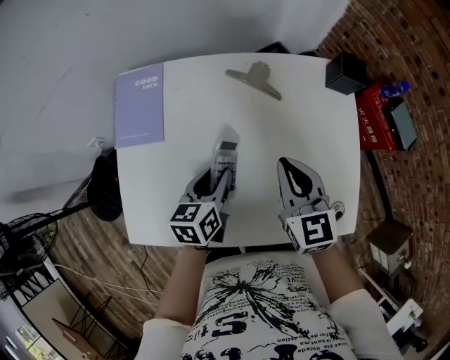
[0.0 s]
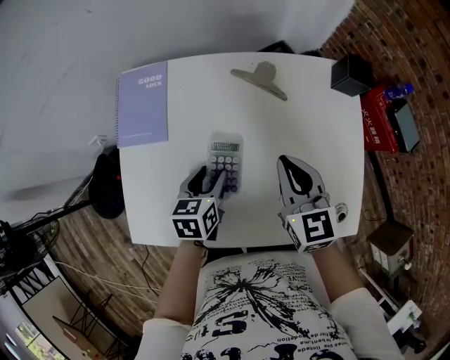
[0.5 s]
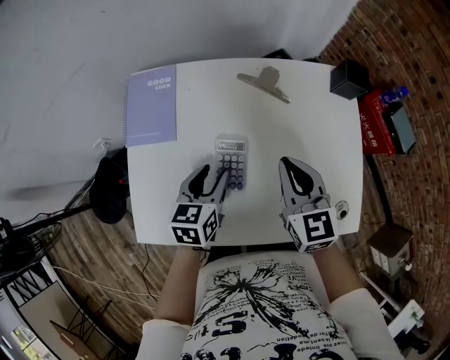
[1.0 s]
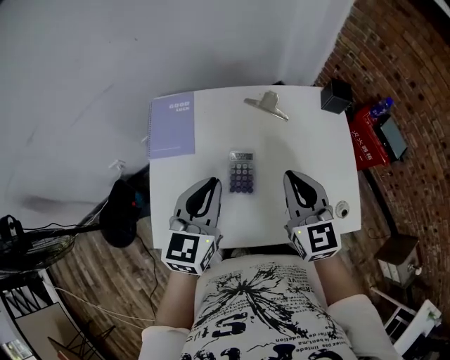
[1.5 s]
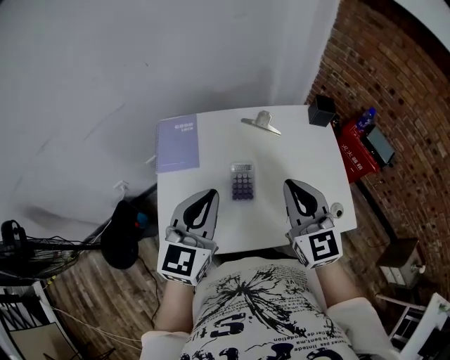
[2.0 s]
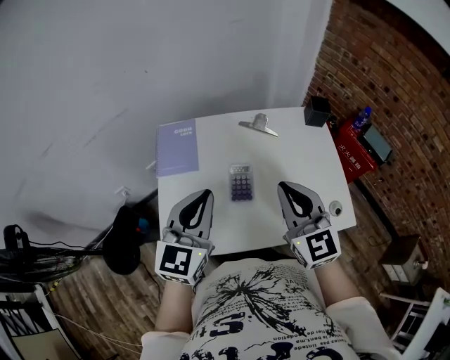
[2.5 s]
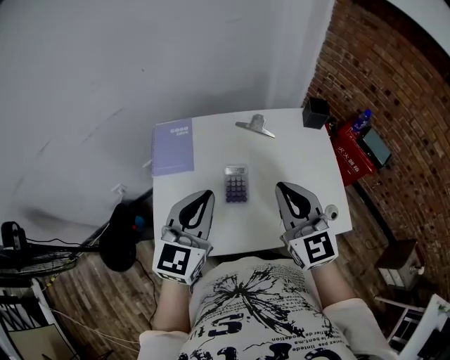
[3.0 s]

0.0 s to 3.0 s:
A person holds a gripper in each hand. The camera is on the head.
0.0 to 1.5 s: The right gripper heads upward, backward and to the left, covering approximately 15 cm; the left gripper goes approximately 20 cm upward, changes its angle by some 30 degrees, and closes its fingers.
1.5 to 3.0 s: Both grippers travel together upward and backward, roughly 10 cm.

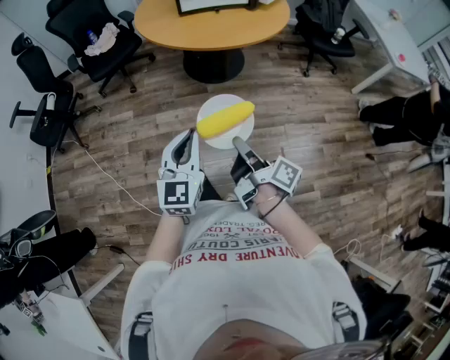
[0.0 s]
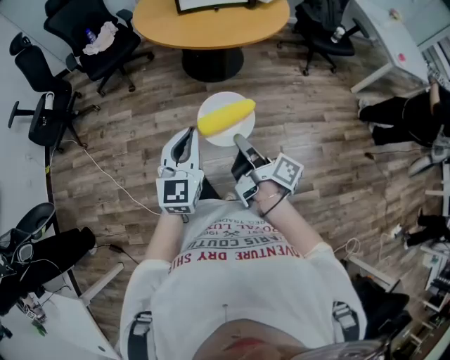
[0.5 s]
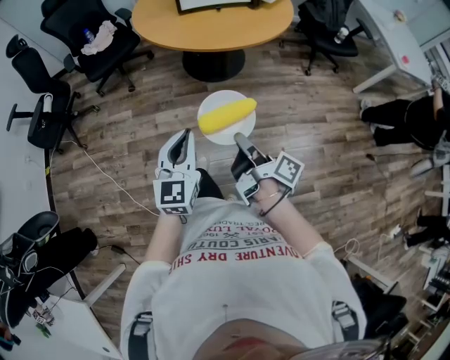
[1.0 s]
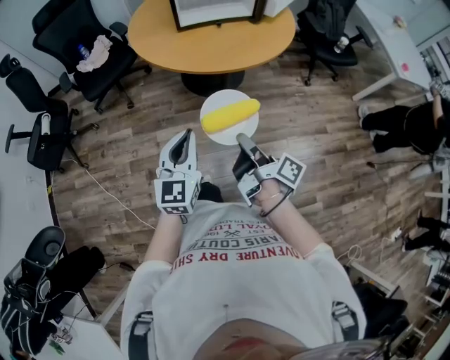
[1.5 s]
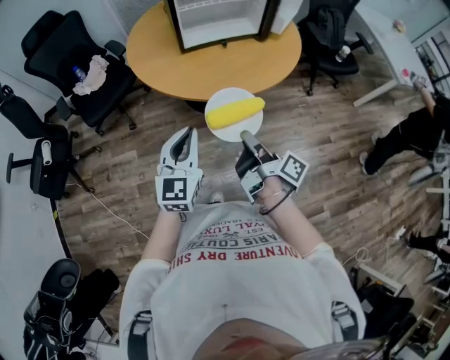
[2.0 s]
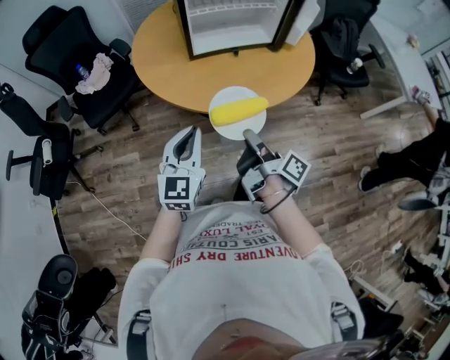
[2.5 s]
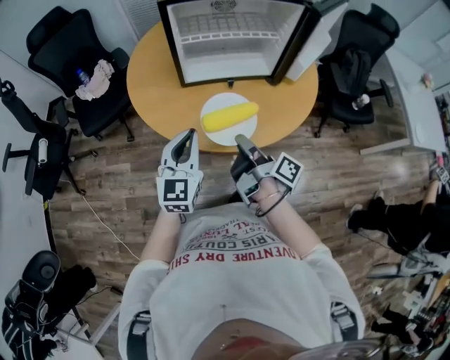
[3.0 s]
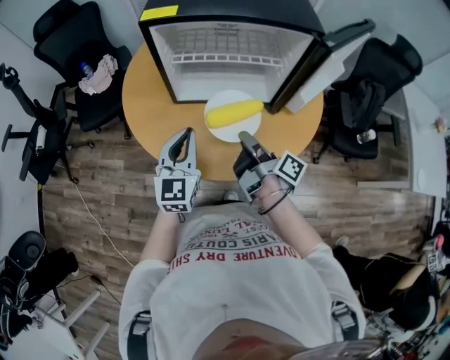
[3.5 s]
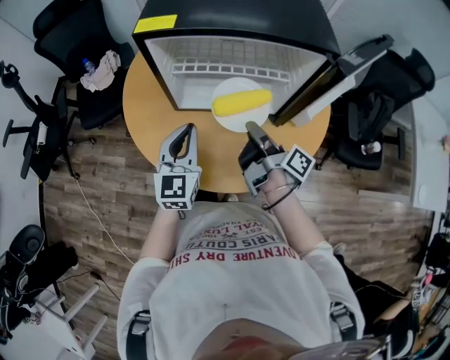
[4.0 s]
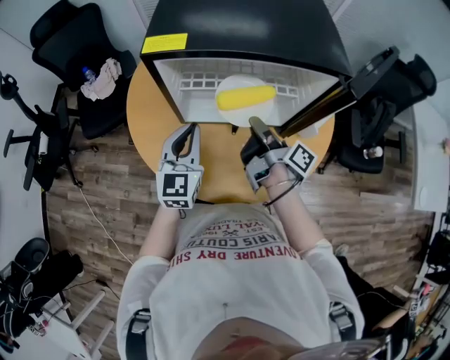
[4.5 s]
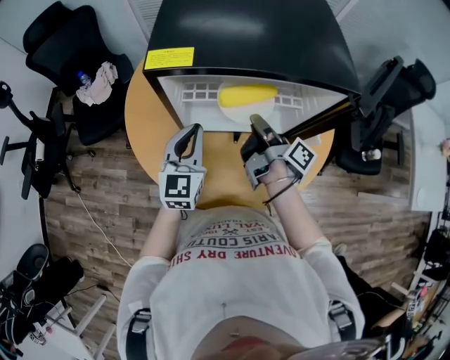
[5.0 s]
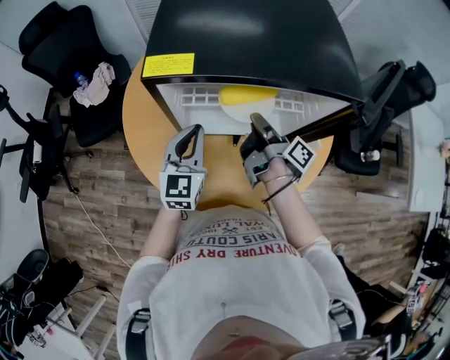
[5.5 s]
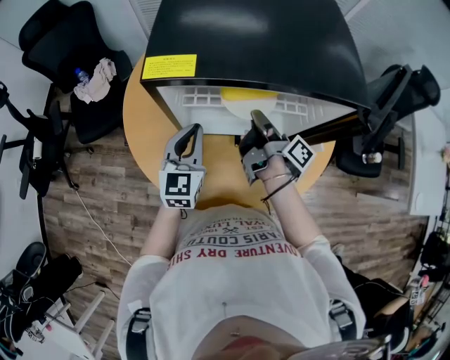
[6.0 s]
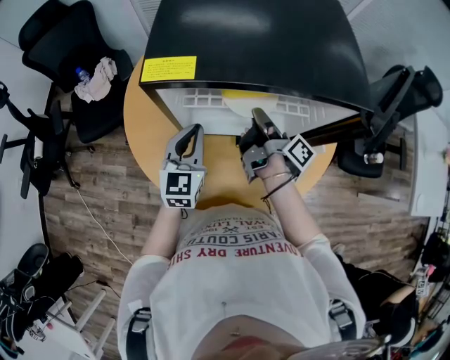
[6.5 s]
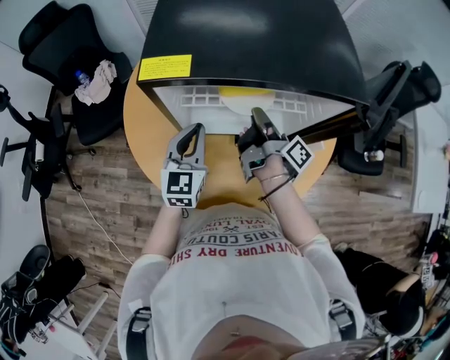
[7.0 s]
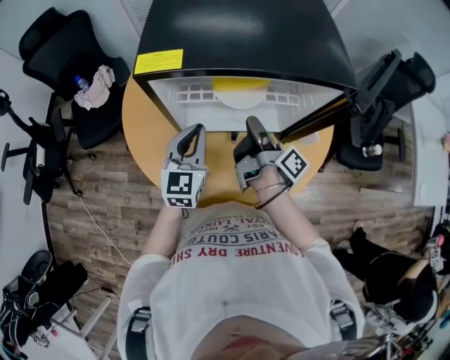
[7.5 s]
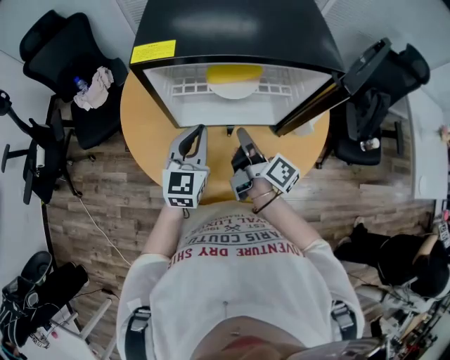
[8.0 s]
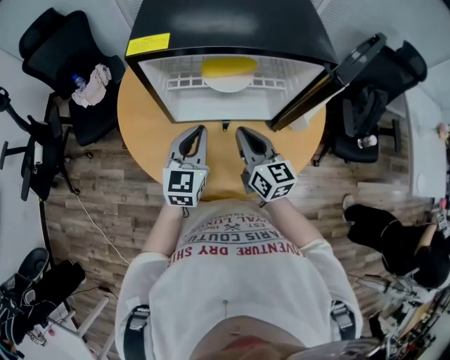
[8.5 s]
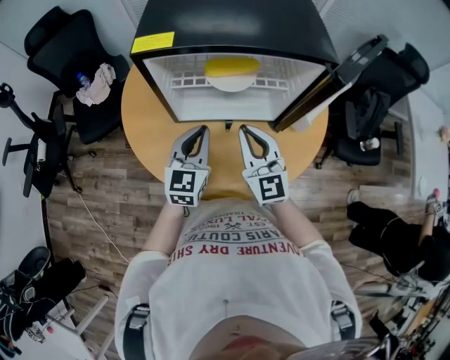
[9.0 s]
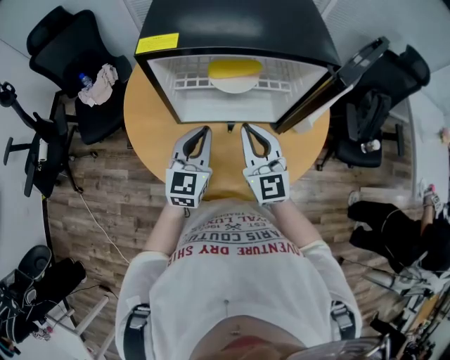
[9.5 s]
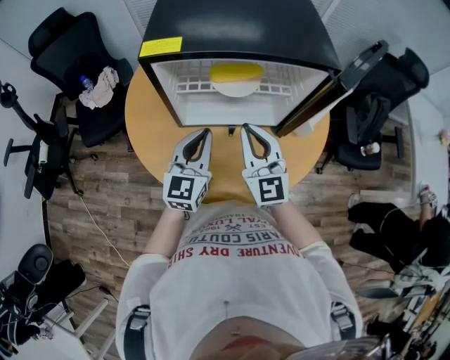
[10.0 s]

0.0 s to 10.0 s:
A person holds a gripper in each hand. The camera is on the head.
0.0 to 2.0 s: The left gripper changes place by about 30 cm.
2.0 to 4.0 s: The left gripper moves some 40 cm, and changes its angle by about 20 degrees.
4.0 to 6.0 s: The left gripper ends up about 10 cm from where it was.
6.0 to 8.0 s: The left gripper moves approximately 5 cm.

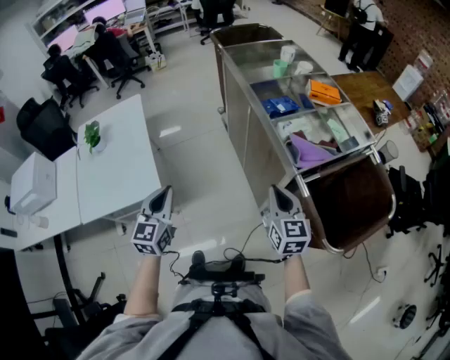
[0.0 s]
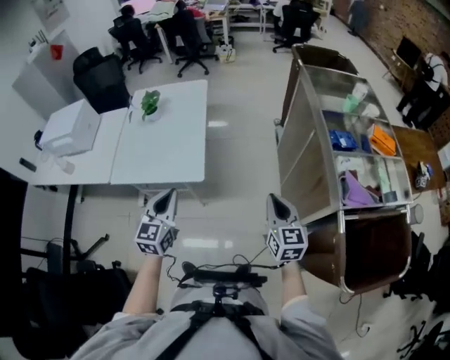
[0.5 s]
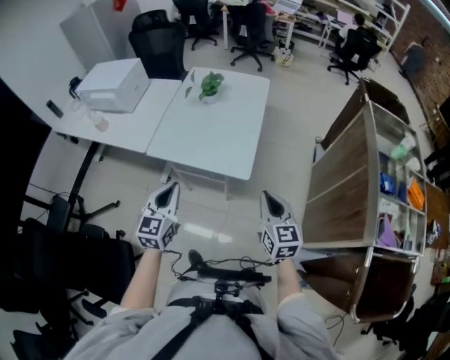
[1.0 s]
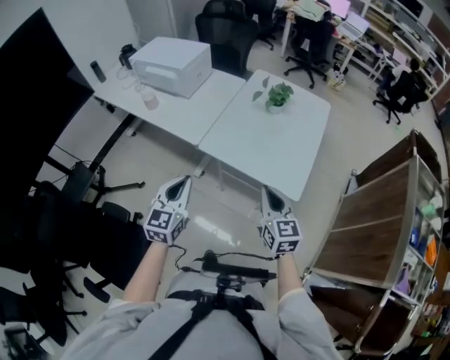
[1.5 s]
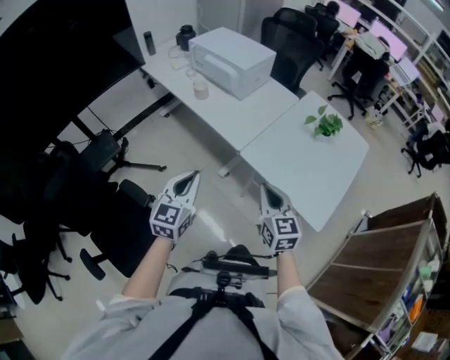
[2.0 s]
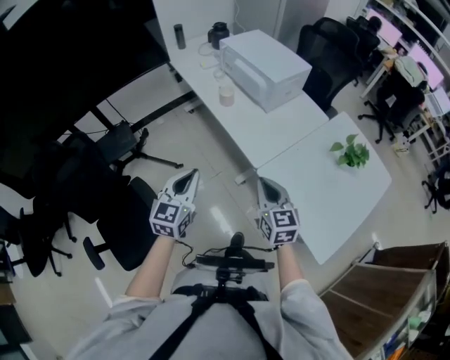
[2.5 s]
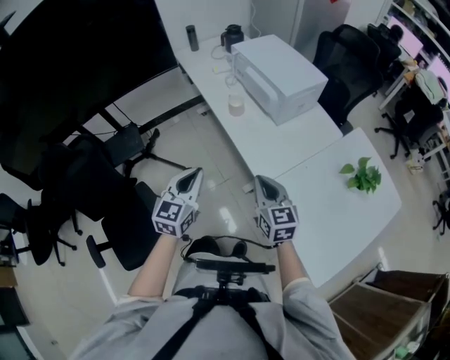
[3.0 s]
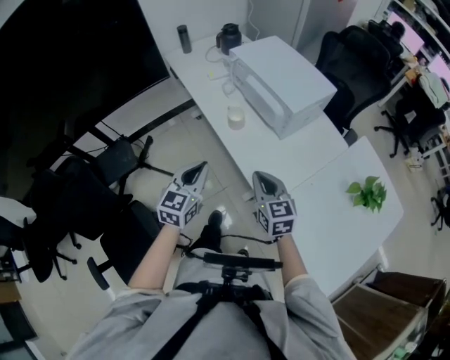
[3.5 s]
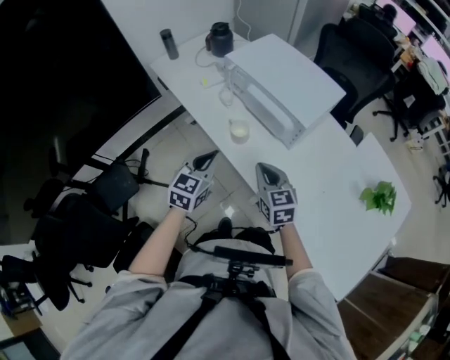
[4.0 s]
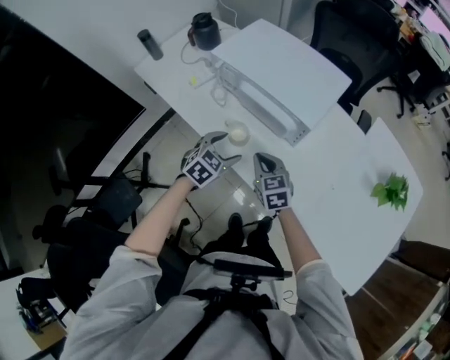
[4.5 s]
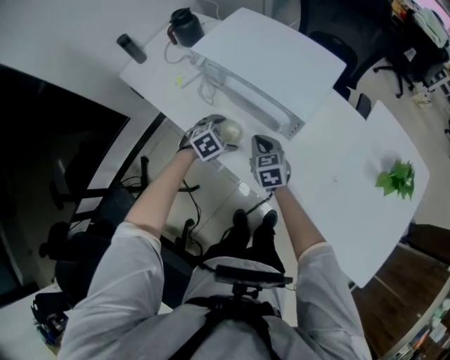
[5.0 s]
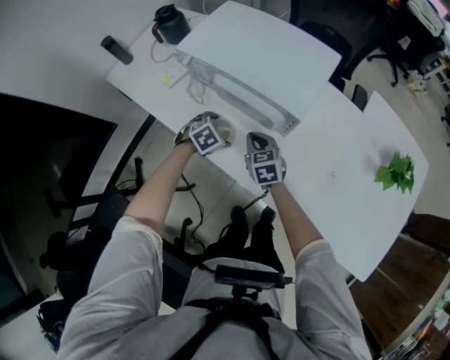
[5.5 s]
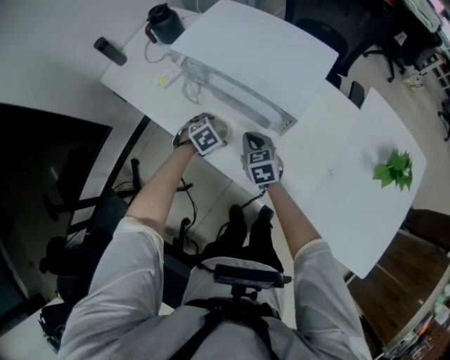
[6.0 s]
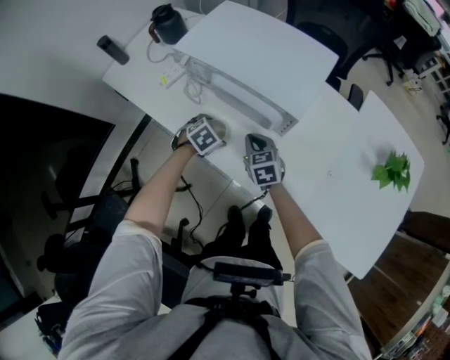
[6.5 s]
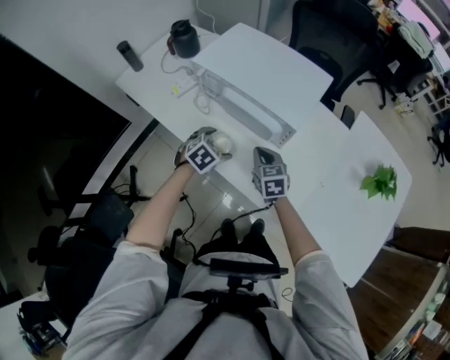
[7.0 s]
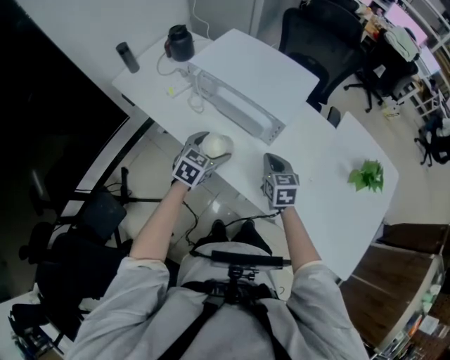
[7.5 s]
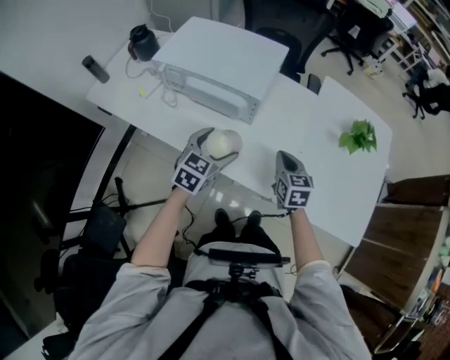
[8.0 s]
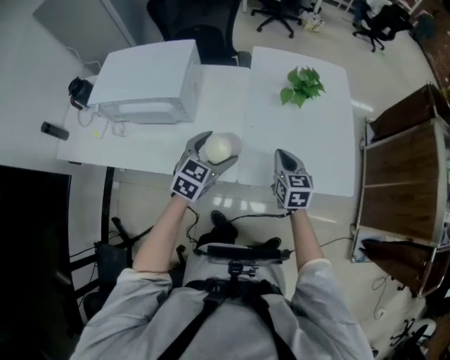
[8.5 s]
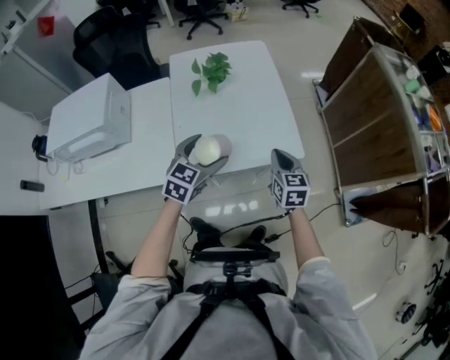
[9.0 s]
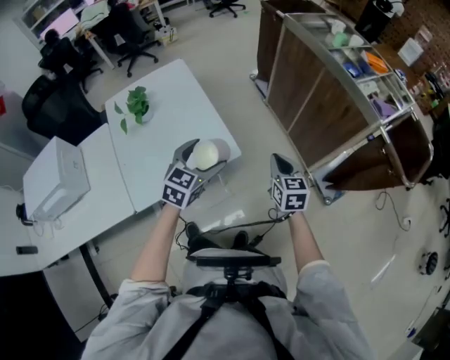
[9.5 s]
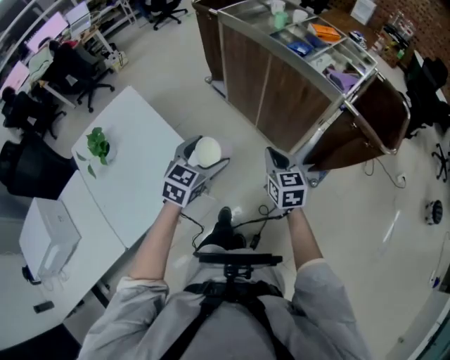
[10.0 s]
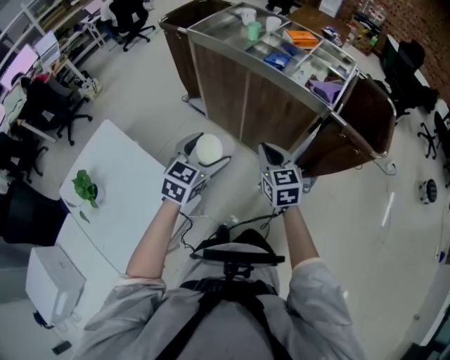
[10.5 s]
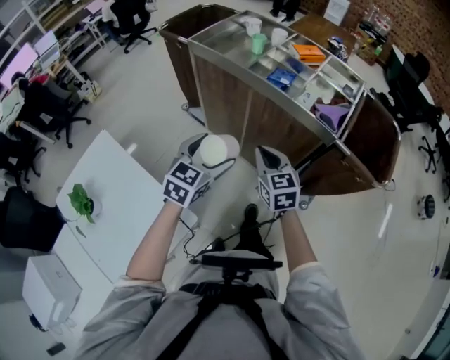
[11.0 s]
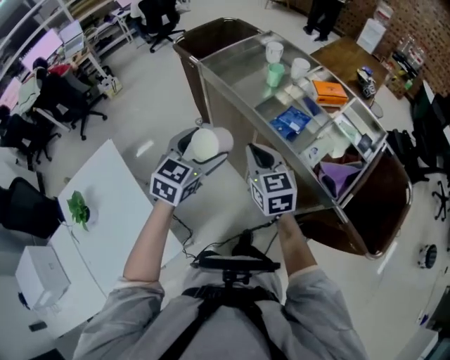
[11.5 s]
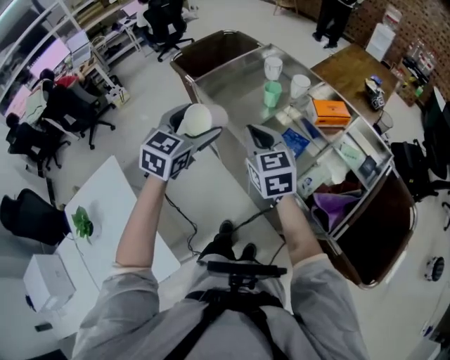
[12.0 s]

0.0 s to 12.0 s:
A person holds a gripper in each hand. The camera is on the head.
0.0 to 2.0 s: Both grippers are carried about 70 cm. The right gripper swivels some 70 degrees; the left gripper swivels approximately 50 degrees.
2.0 to 4.0 s: The two grippers travel together, forward, about 50 cm.
4.0 to 6.0 s: The right gripper moves some 25 cm, while the left gripper travels downward by about 25 cm, tilts its fingers some 50 degrees downward, and opens its fingers.
6.0 to 8.0 s: The right gripper heads to the right, backward and upward, covering some 25 cm, and swivels about 20 degrees. The left gripper is displaced upward, to the right and backward by some 25 cm, and tilts its fingers roughly 40 degrees upward.
8.0 to 10.0 s: The two grippers travel together, approximately 90 cm. The left gripper rotates about 70 degrees; the right gripper rotates some 60 degrees.
10.0 to 12.0 s: The two grippers travel together, forward, approximately 50 cm.

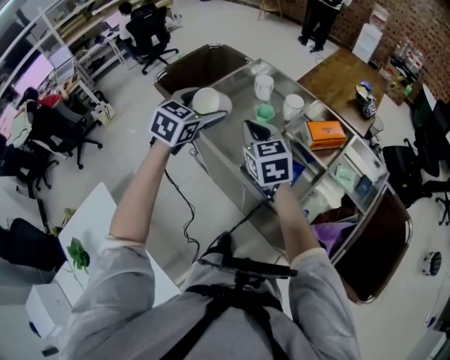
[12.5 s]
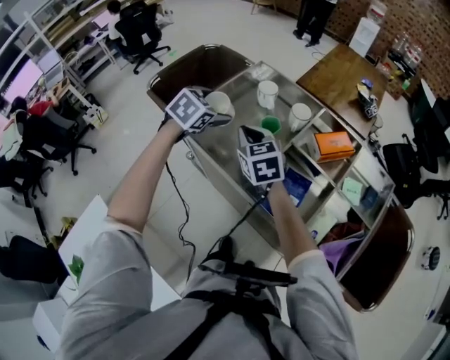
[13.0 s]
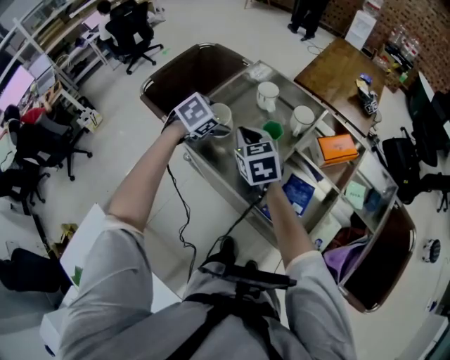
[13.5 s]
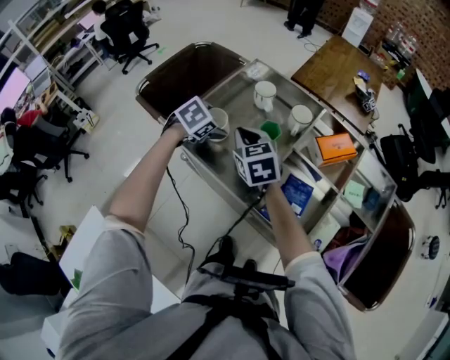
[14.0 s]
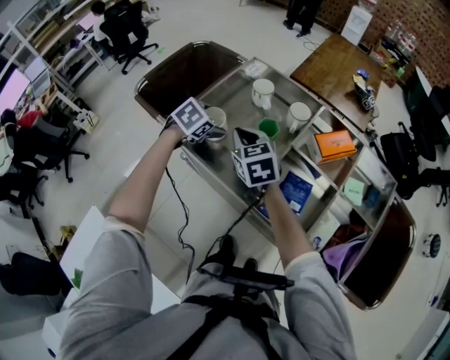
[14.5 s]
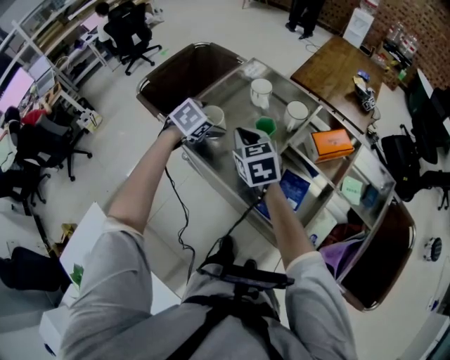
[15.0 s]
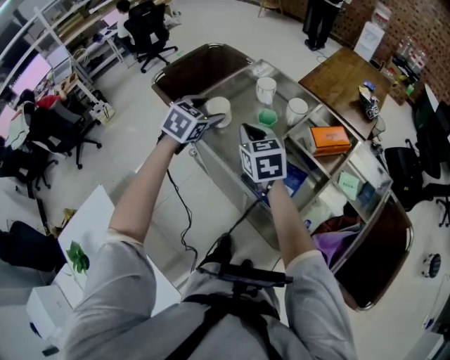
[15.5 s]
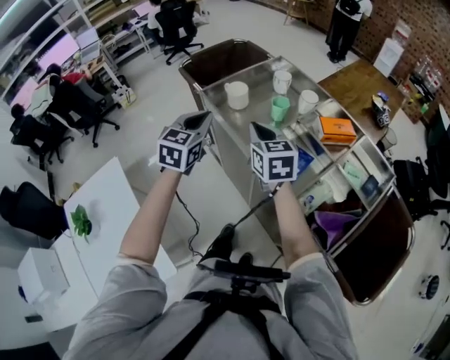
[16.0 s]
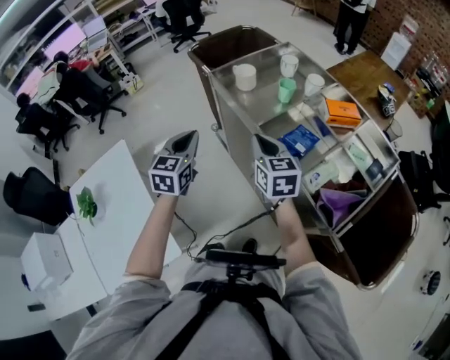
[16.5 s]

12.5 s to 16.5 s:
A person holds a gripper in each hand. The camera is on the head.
12.5 to 14.5 s: The right gripper travels forward, downward and to the left by some 15 cm, while the left gripper travels downward and forward by roughly 20 cm, and points its fingers some 30 degrees further downward.
14.5 to 16.5 s: The right gripper ends up about 25 cm from where it was. Meanwhile the left gripper shifts by roughly 40 cm, tilts its fingers about 40 degrees upward, and closes its fingers.
